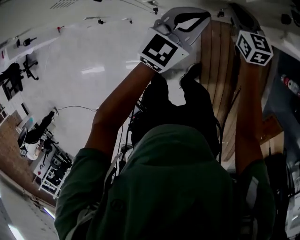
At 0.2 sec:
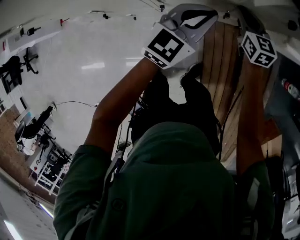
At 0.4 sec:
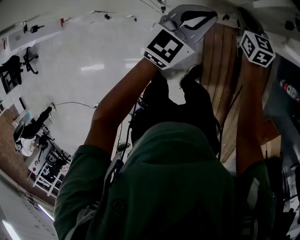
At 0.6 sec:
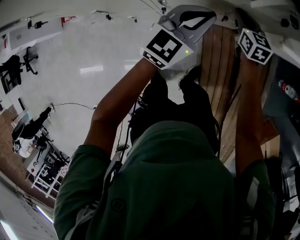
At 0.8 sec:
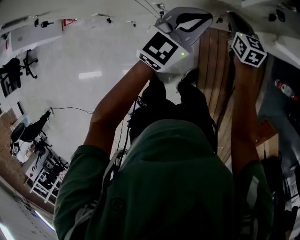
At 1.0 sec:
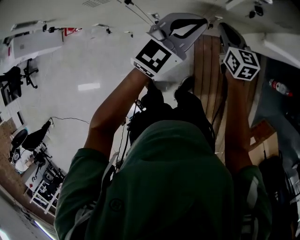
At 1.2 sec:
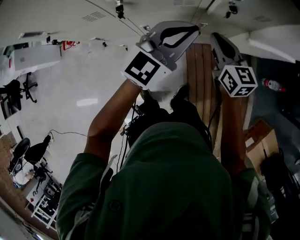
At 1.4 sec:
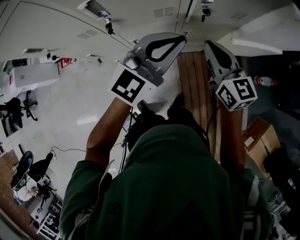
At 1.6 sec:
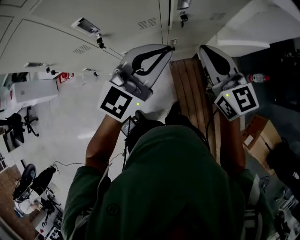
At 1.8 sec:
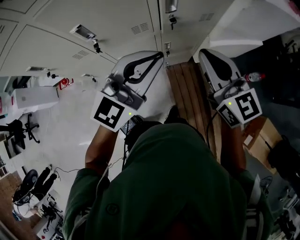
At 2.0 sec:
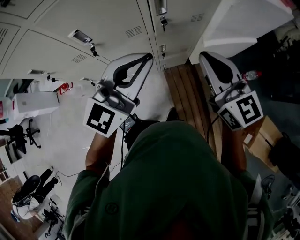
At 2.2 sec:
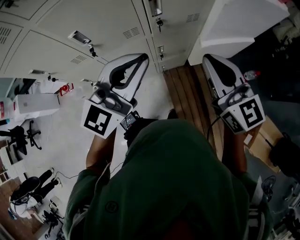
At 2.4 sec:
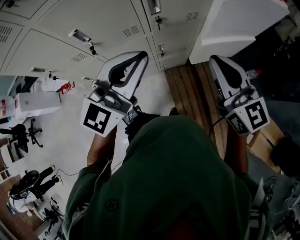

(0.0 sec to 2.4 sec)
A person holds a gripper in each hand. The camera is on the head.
0.0 sec - 1.2 sec: The left gripper heads upward, covering some 20 cm; the right gripper heads upward and backward, covering roughly 20 cm.
1.2 sec - 2.4 sec: The left gripper moves upward, backward and to the right, roughly 20 cm. The right gripper shifts approximately 30 cm upward, to the right and backward, and changes its angle by about 20 degrees.

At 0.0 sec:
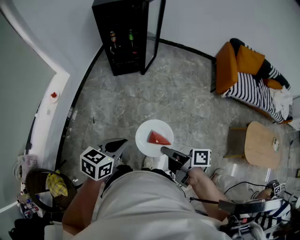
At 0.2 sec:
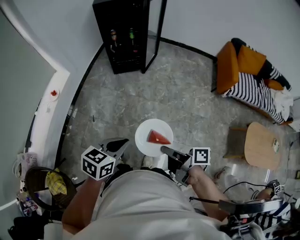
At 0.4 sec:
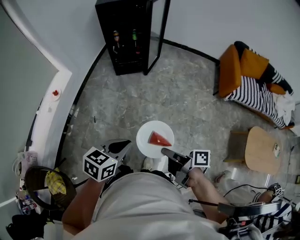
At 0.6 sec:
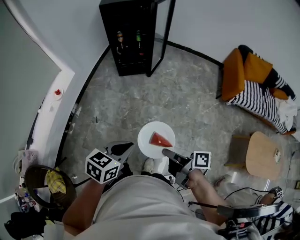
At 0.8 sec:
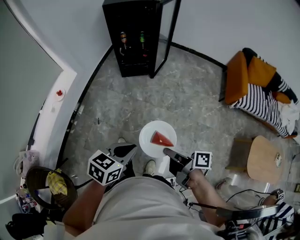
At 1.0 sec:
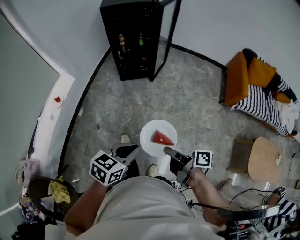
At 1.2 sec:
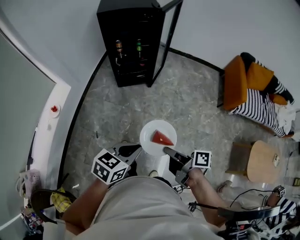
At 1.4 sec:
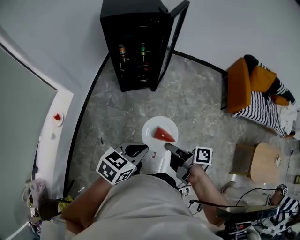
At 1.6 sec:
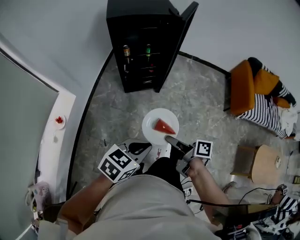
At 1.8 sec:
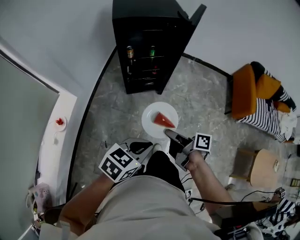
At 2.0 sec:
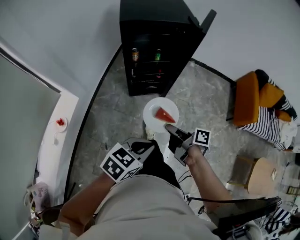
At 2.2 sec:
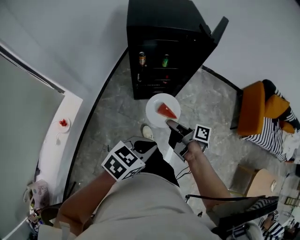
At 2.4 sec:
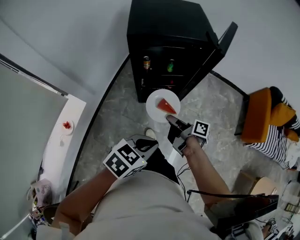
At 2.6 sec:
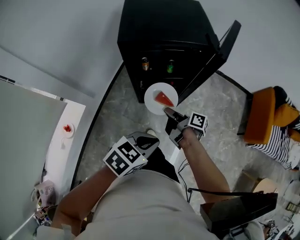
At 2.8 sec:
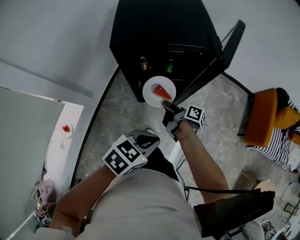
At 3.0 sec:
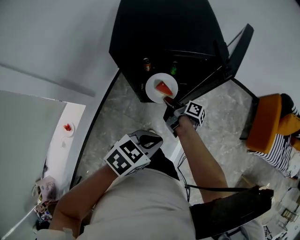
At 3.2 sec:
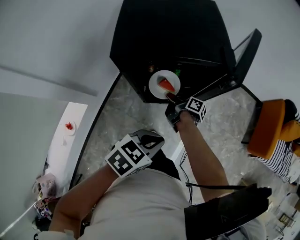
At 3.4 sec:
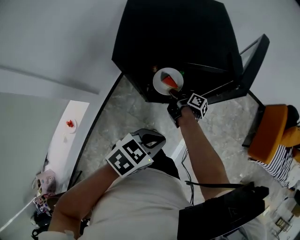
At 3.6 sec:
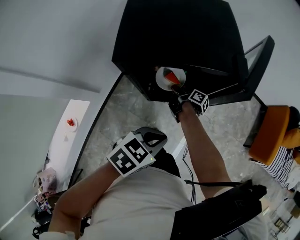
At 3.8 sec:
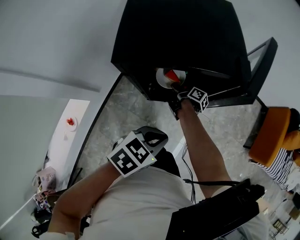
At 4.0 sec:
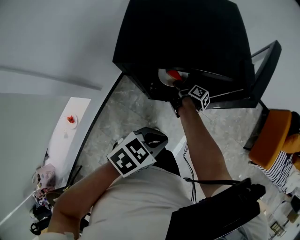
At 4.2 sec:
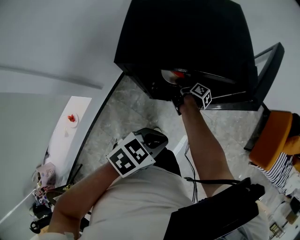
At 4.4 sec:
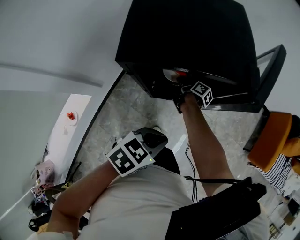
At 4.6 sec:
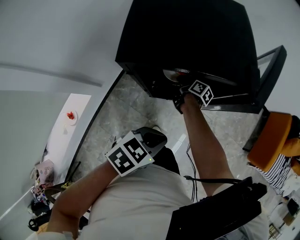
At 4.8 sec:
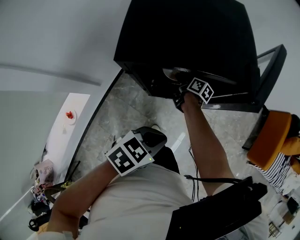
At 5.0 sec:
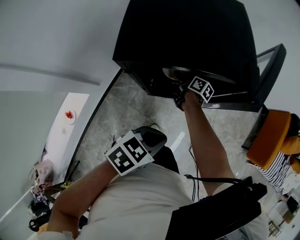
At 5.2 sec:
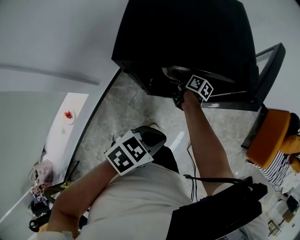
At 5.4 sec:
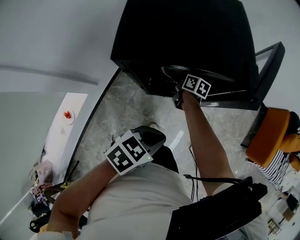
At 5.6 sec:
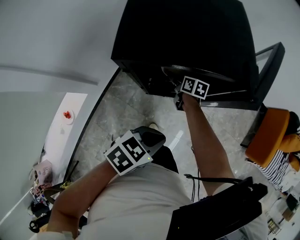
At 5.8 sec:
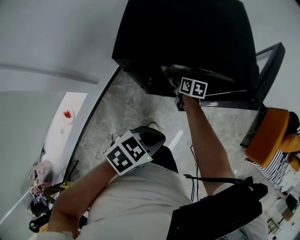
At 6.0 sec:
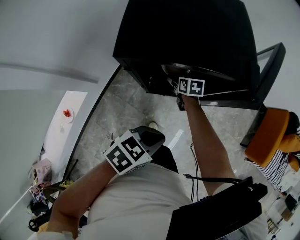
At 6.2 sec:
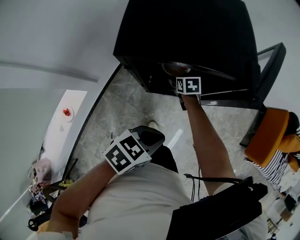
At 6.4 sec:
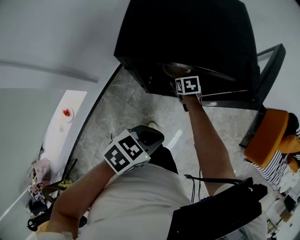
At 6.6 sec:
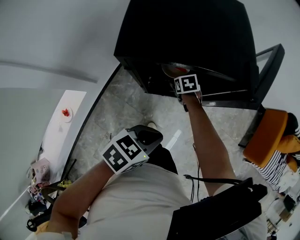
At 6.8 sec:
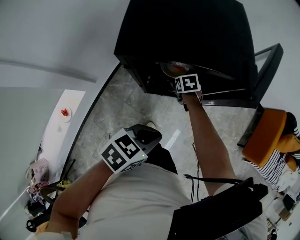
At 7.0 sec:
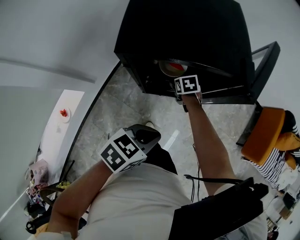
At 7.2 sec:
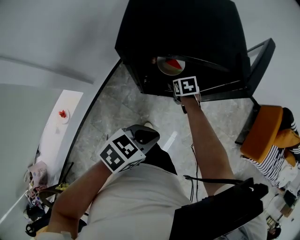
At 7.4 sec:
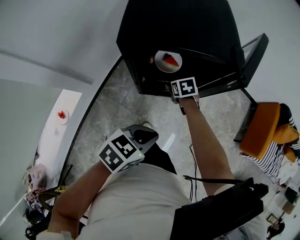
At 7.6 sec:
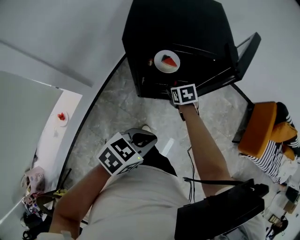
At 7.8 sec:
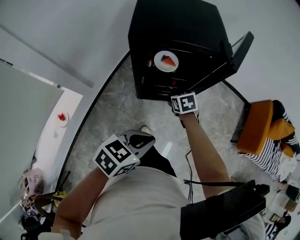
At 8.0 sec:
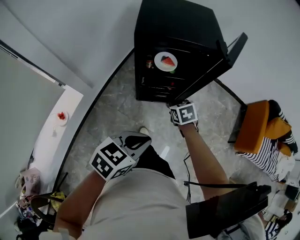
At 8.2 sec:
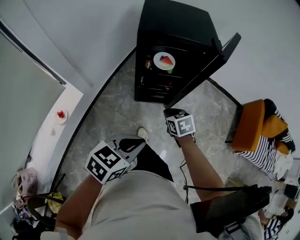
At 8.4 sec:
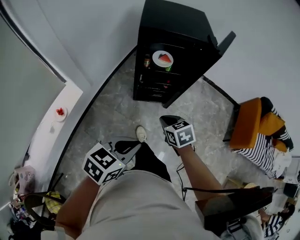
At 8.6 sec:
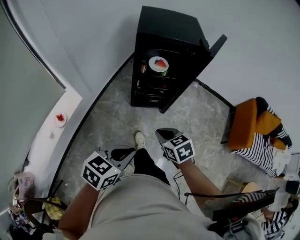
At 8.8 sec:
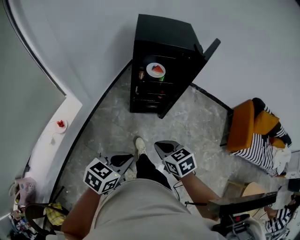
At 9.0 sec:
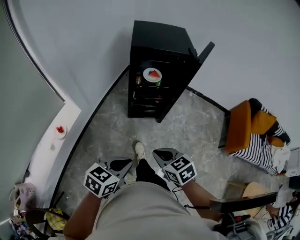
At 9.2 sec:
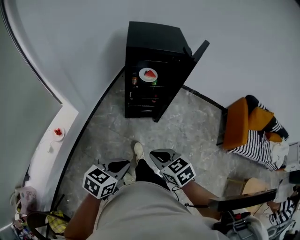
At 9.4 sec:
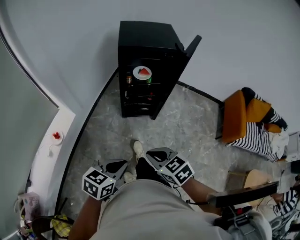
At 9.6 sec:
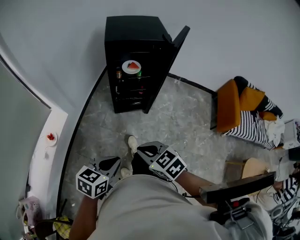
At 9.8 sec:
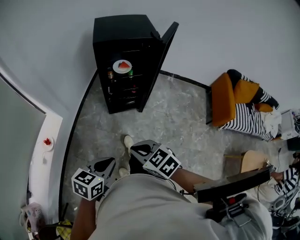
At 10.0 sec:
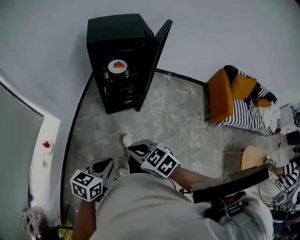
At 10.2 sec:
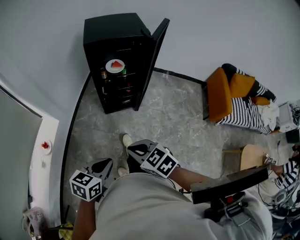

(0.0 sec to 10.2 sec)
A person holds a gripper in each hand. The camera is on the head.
0.0 sec - 1.4 sec: The left gripper moves some 25 cm.
1.4 sec - 3.0 sec: The left gripper shifts by approximately 40 cm.
3.0 sec - 4.4 sec: The left gripper shifts by approximately 10 cm.
7.2 sec - 8.8 sec: The left gripper ends up approximately 35 cm from where it was.

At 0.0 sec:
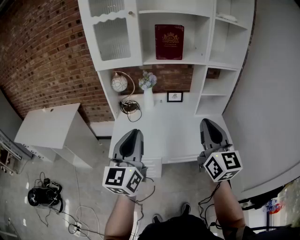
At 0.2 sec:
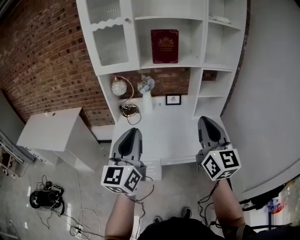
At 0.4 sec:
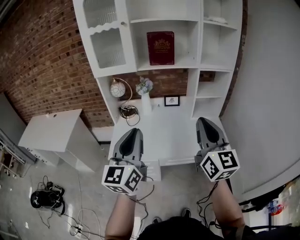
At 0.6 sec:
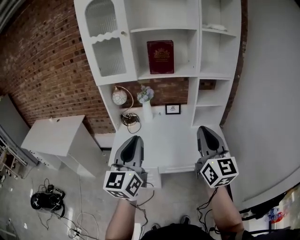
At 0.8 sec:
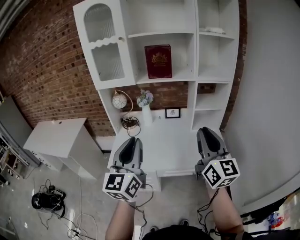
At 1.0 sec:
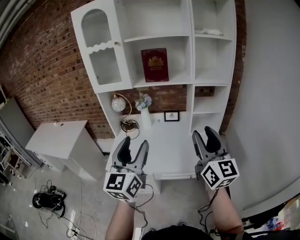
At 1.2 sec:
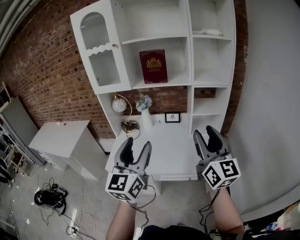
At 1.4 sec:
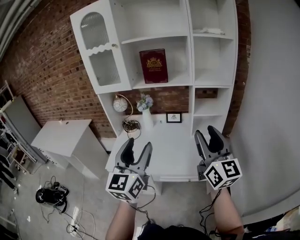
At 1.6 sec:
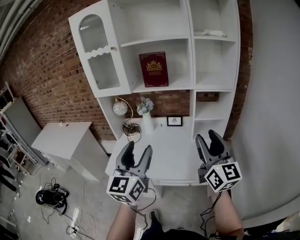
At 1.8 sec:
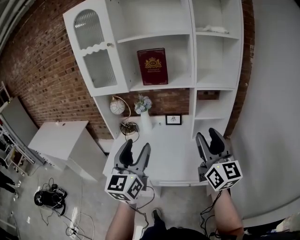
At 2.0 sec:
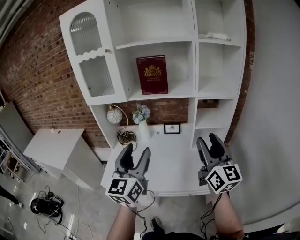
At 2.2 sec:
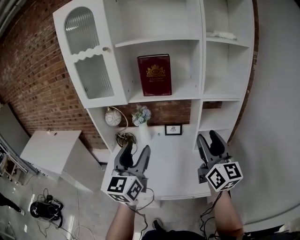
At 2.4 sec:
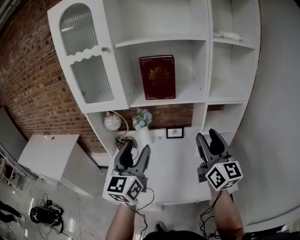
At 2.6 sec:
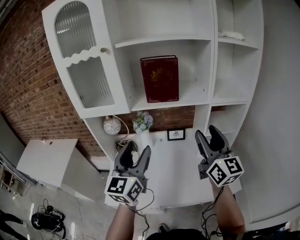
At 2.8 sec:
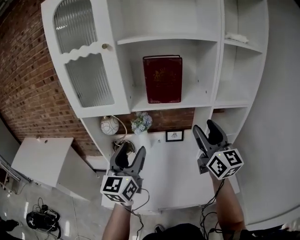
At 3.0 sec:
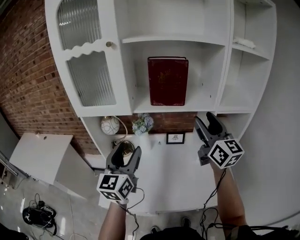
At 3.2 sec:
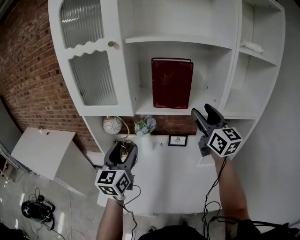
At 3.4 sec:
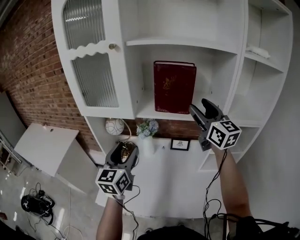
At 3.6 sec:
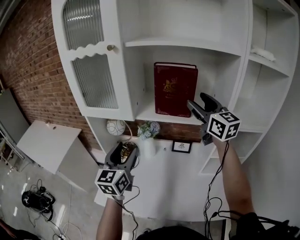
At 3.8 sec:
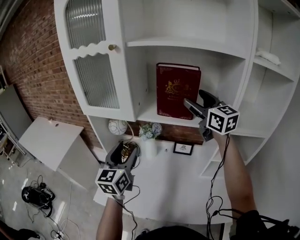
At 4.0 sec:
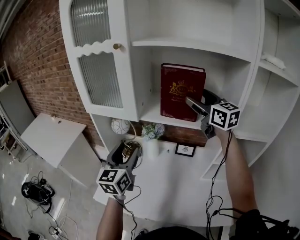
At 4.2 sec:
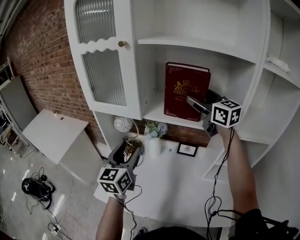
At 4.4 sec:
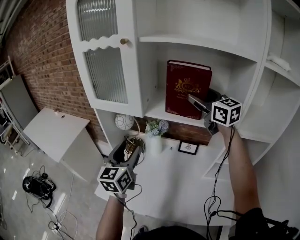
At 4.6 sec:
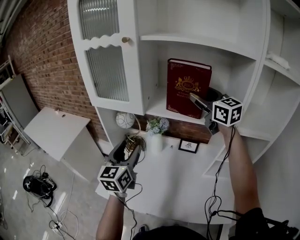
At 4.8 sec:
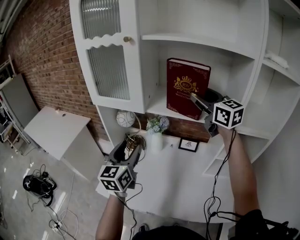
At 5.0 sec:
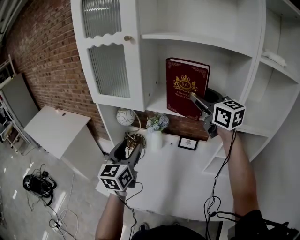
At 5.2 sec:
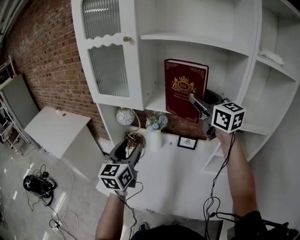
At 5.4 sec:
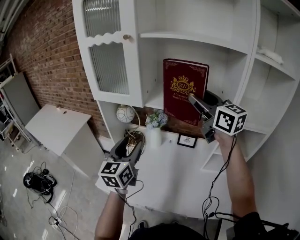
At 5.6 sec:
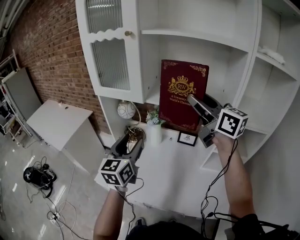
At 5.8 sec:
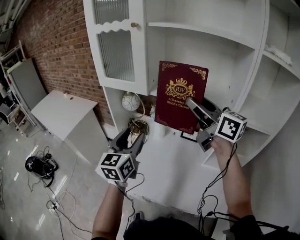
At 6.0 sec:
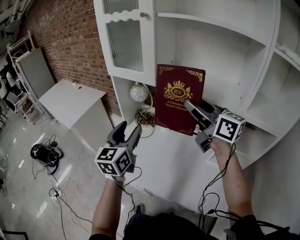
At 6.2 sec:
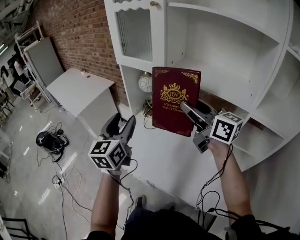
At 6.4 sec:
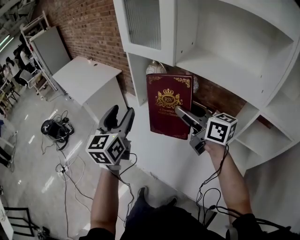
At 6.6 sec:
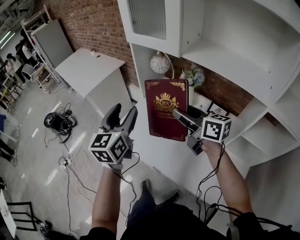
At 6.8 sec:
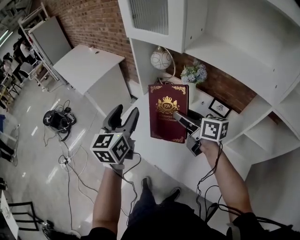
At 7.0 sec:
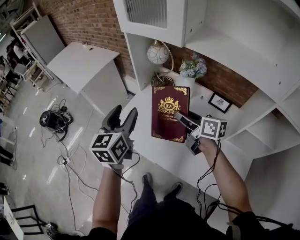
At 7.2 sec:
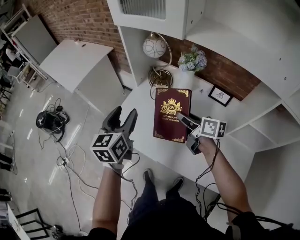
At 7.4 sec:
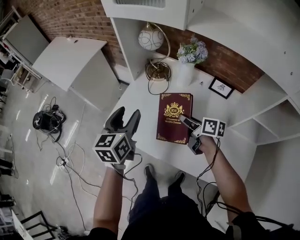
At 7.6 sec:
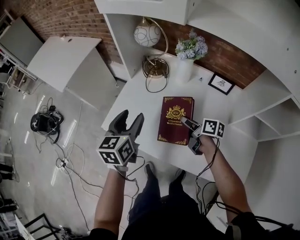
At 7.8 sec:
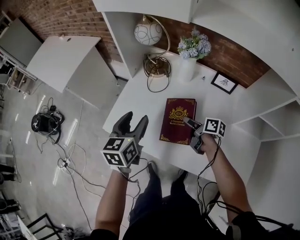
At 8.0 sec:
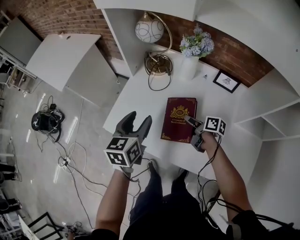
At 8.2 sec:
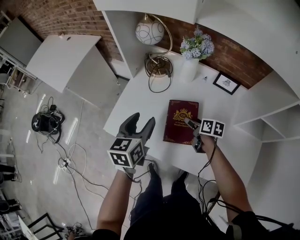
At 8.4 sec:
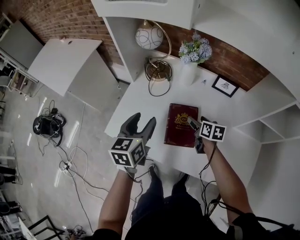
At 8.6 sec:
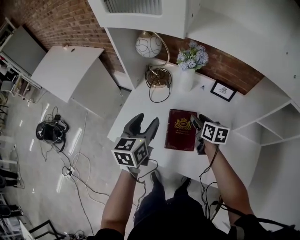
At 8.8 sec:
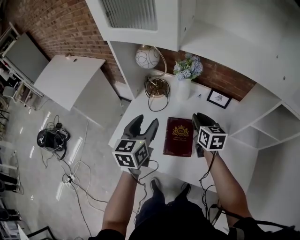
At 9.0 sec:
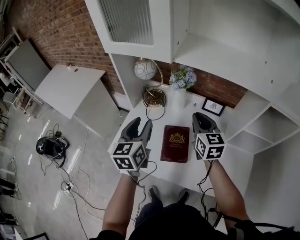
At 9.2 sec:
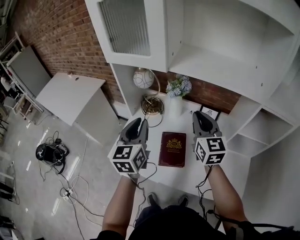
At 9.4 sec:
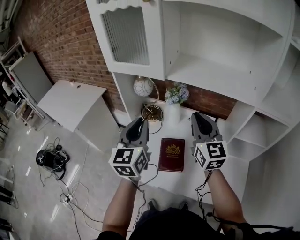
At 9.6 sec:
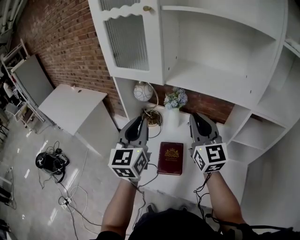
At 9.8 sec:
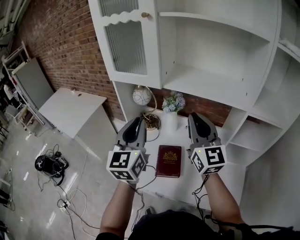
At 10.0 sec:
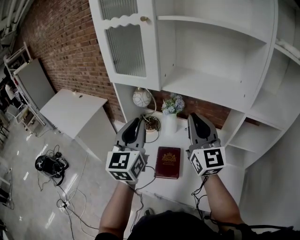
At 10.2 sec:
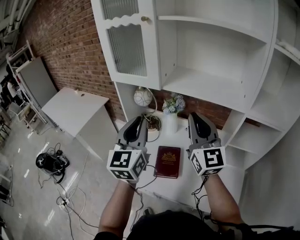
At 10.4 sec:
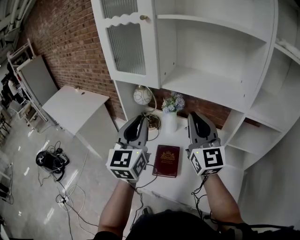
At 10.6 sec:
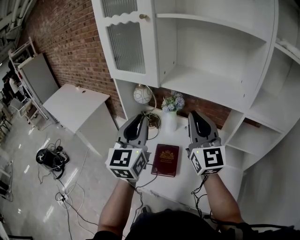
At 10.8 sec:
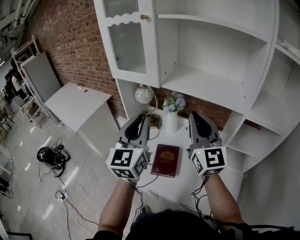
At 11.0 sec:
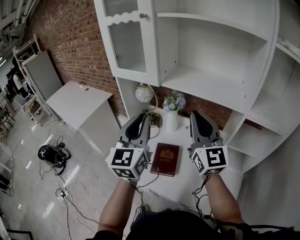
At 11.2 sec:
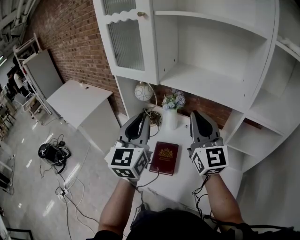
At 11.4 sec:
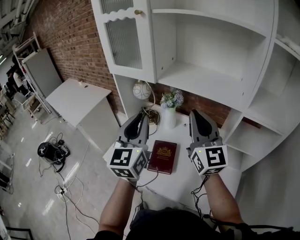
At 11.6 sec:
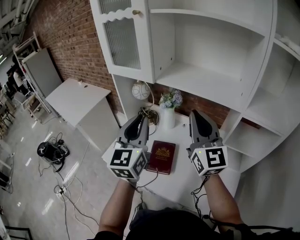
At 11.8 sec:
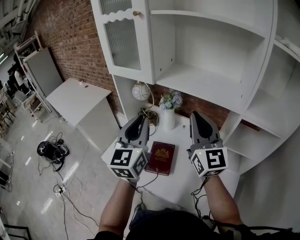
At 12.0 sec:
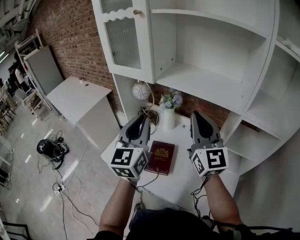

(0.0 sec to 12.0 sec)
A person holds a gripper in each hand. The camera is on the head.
0.0 sec - 1.6 sec: The two grippers go about 20 cm to the right. The left gripper opens up. The right gripper opens its fingers.
1.6 sec - 3.0 sec: The left gripper travels forward and to the left by about 30 cm. Meanwhile the right gripper heads forward, covering approximately 30 cm.
3.0 sec - 4.4 sec: The right gripper heads forward, covering roughly 20 cm, and changes its angle by about 30 degrees. The left gripper moves forward, some 5 cm.
4.4 sec - 6.0 sec: The left gripper shifts roughly 10 cm backward, while the right gripper travels backward and to the left by roughly 20 cm, and turns by some 30 degrees.
6.0 sec - 7.6 sec: The left gripper is displaced downward by some 25 cm, and turns by about 20 degrees. The right gripper shifts roughly 50 cm downward, and rolls clockwise, seen from behind, by about 50 degrees.
7.6 sec - 9.0 sec: The left gripper shifts some 10 cm upward and to the right, while the right gripper moves upward, approximately 20 cm, rotates around the line of its fingers by roughly 50 degrees, counterclockwise from behind, and closes its fingers.
9.0 sec - 10.4 sec: The right gripper shifts some 25 cm upward and backward, and points its fingers some 30 degrees further upward. The left gripper travels upward by roughly 20 cm, turns by about 20 degrees, and closes.
10.4 sec - 12.0 sec: The right gripper shifts by about 5 cm, while the left gripper moves some 5 cm.
